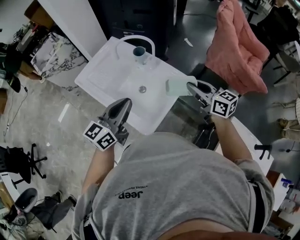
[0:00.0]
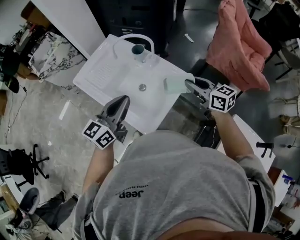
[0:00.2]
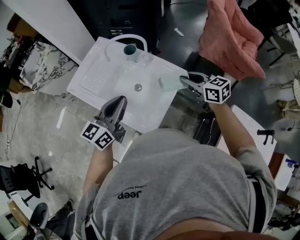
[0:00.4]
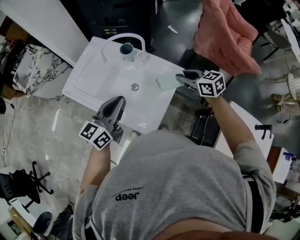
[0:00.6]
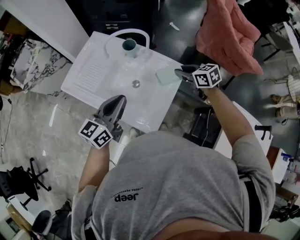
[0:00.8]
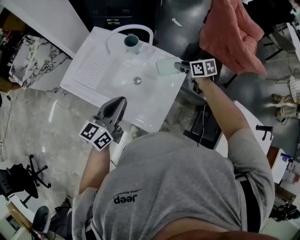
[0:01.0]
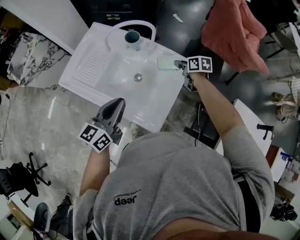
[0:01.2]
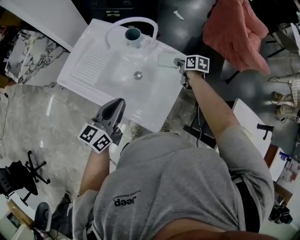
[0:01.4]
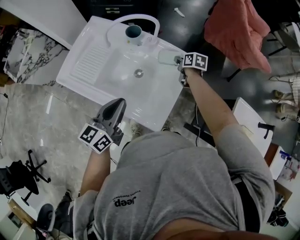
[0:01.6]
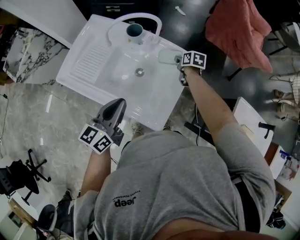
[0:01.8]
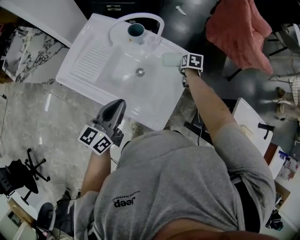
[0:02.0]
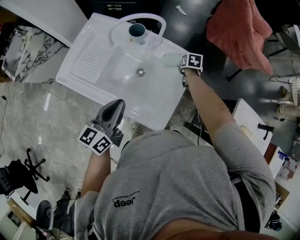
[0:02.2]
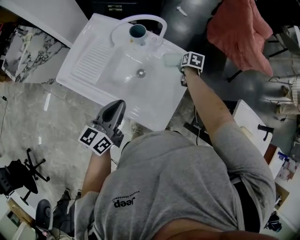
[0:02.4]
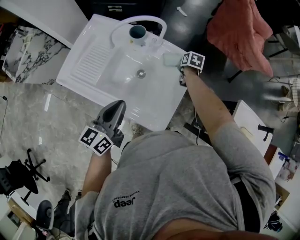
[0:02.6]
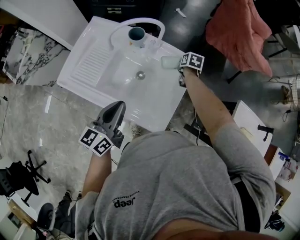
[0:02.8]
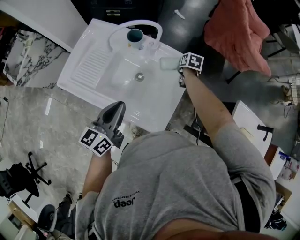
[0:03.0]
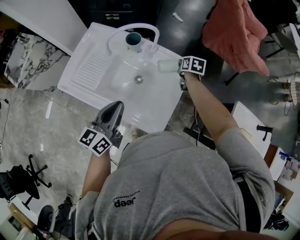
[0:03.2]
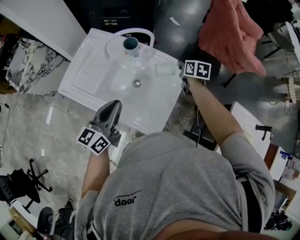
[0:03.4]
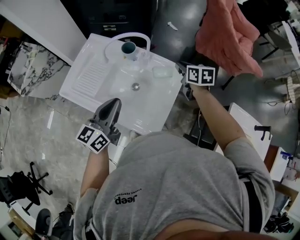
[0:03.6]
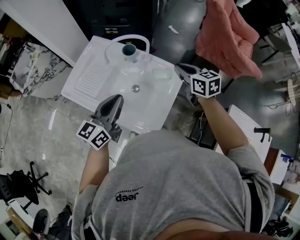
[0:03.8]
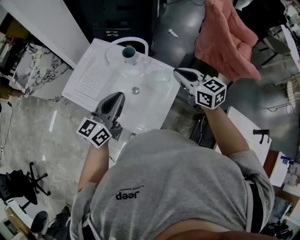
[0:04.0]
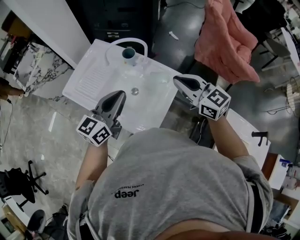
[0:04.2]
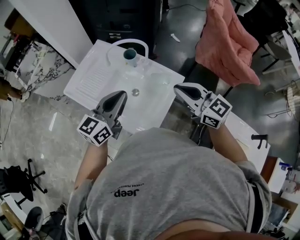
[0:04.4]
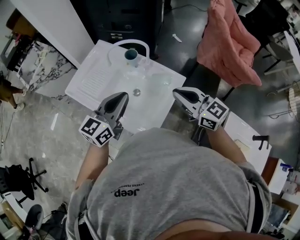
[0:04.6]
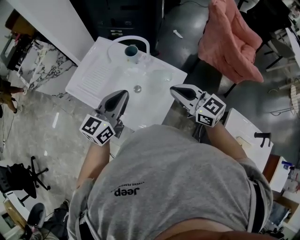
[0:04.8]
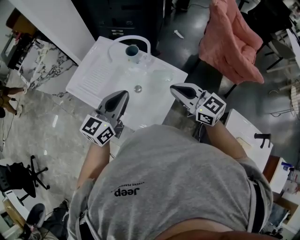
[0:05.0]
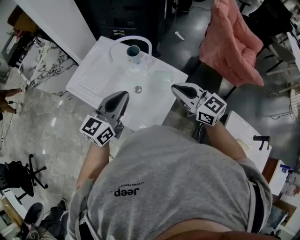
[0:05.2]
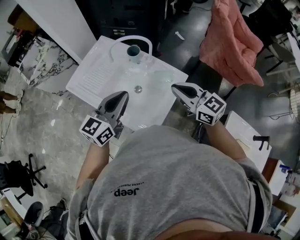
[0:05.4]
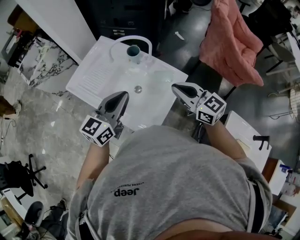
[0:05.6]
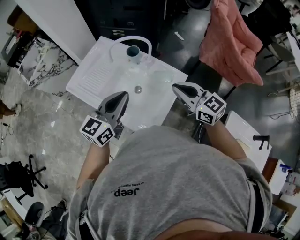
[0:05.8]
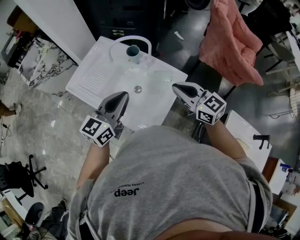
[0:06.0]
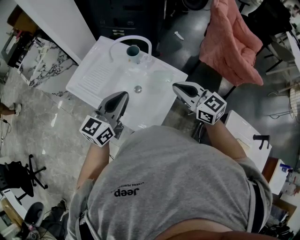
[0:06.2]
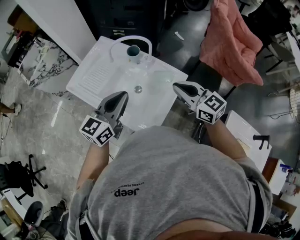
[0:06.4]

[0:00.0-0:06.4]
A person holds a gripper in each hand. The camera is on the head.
0:00.0 to 0:01.6: The left gripper goes some 15 cm downward, to the left and forward. Meanwhile the right gripper heads downward and forward, covering about 30 cm, and points its fingers approximately 40 degrees further downward.
0:03.2 to 0:04.8: The left gripper moves upward and to the right, some 10 cm; the right gripper moves upward and backward, about 30 cm, and tips its fingers upward by approximately 40 degrees.
0:04.8 to 0:06.4: The grippers move only a little.

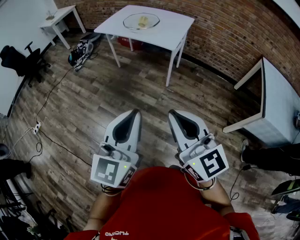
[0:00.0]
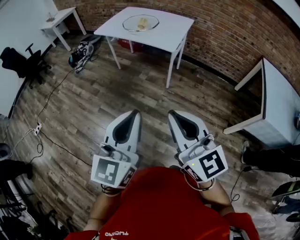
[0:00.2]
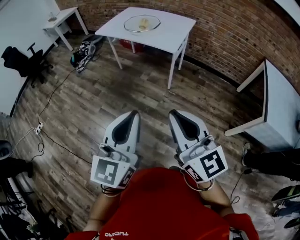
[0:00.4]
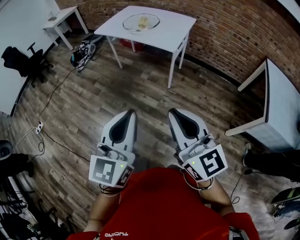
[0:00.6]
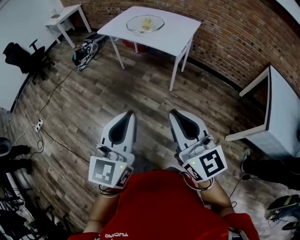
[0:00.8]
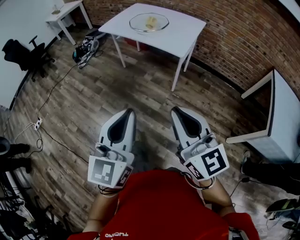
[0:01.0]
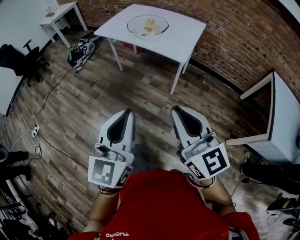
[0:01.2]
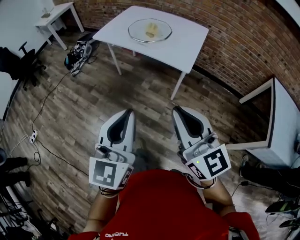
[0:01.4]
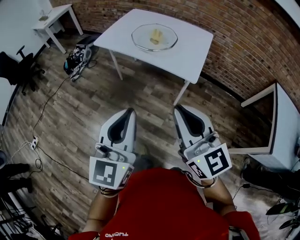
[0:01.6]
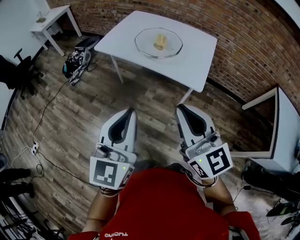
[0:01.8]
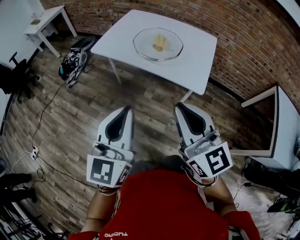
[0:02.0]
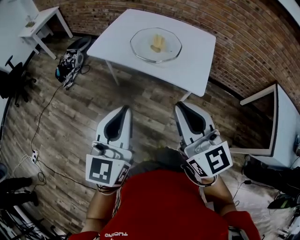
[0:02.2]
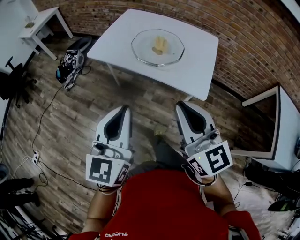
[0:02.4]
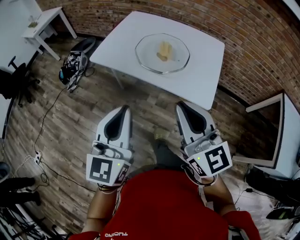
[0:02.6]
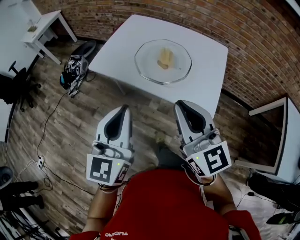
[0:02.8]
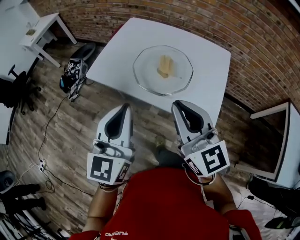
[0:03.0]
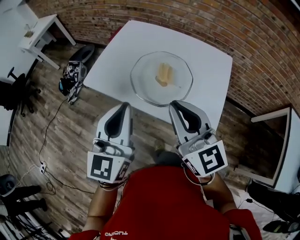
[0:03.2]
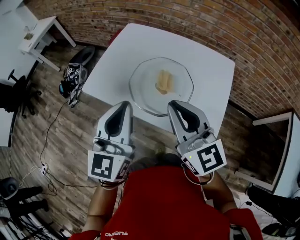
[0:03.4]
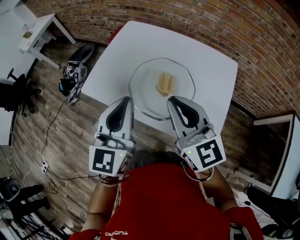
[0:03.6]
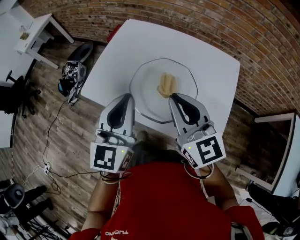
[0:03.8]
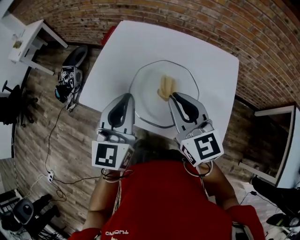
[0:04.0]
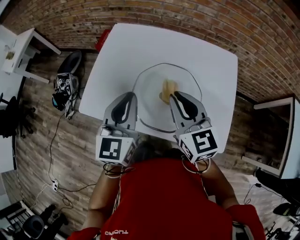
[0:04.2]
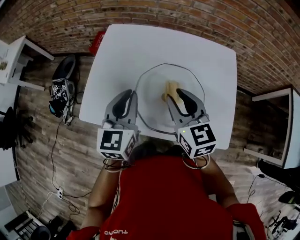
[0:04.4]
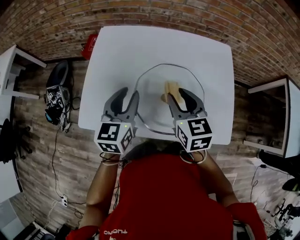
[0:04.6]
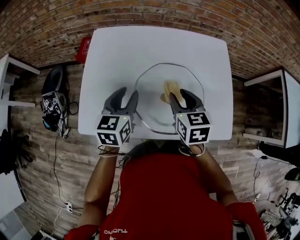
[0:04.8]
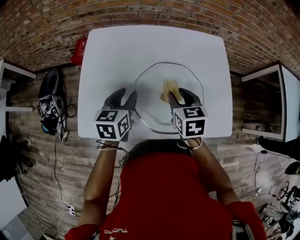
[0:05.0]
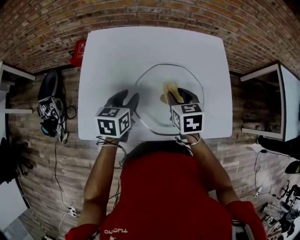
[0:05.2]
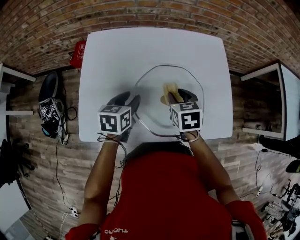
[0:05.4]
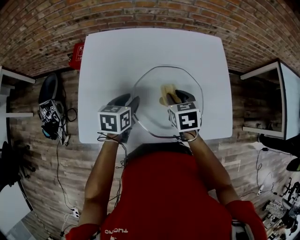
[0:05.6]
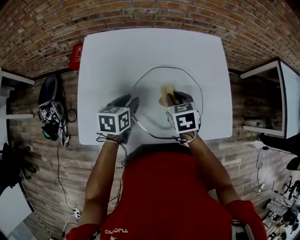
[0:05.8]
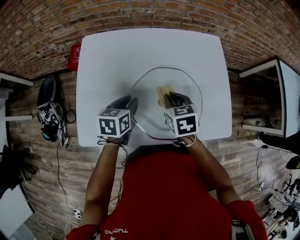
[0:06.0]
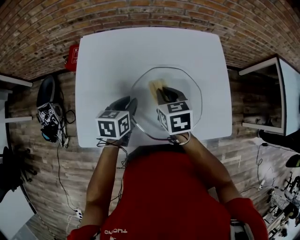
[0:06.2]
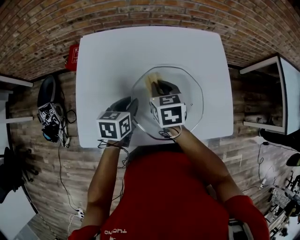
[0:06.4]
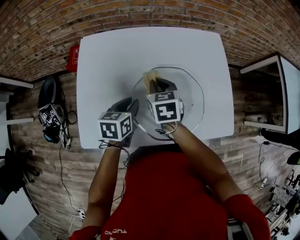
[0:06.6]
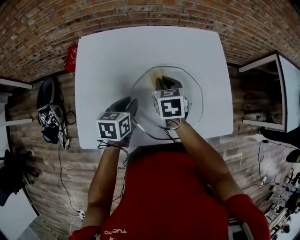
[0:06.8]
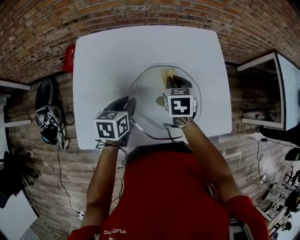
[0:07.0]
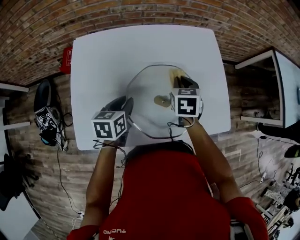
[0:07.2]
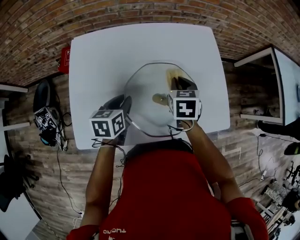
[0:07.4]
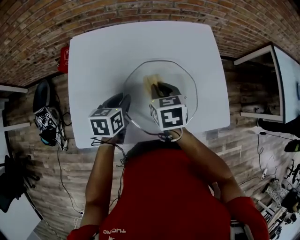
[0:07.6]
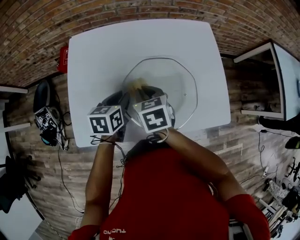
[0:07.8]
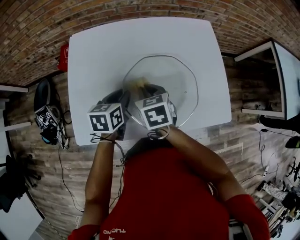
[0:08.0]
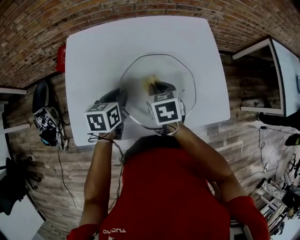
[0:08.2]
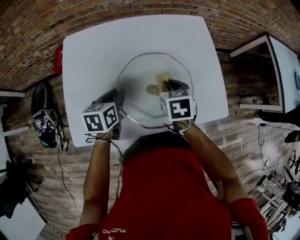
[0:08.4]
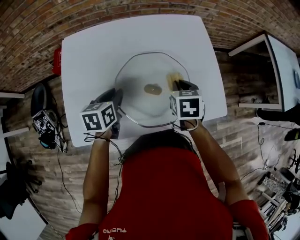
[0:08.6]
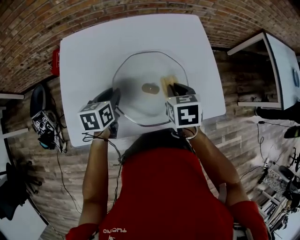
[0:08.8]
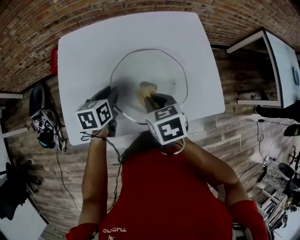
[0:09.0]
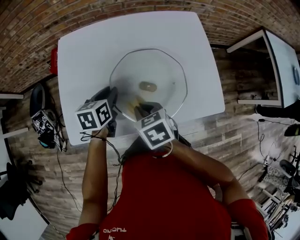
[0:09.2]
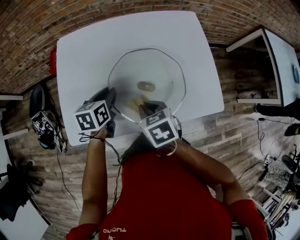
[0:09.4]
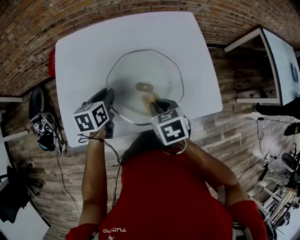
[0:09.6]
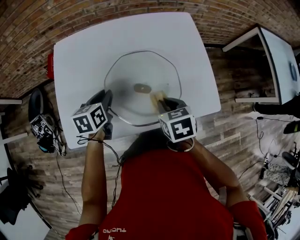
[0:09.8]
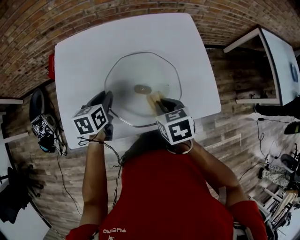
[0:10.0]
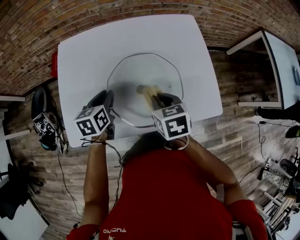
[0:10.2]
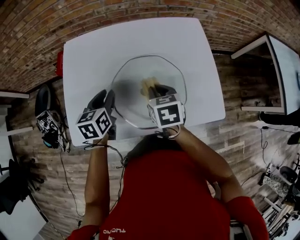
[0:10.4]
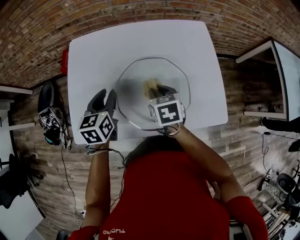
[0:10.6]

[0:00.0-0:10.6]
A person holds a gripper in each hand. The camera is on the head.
0:00.0 to 0:01.6: The grippers both shift forward by approximately 35 cm.
0:01.6 to 0:03.0: The grippers both shift forward by some 35 cm.
0:03.0 to 0:04.6: Both grippers travel together forward and downward, approximately 35 cm. The right gripper rotates about 40 degrees, and opens. Meanwhile the left gripper swivels about 30 degrees, and opens its fingers.
0:04.6 to 0:06.0: The grippers both shift downward by some 10 cm. The left gripper turns by roughly 30 degrees. Meanwhile the right gripper turns by about 20 degrees, and closes up.
0:06.0 to 0:07.6: The right gripper moves left and right over some 10 cm, changing direction 2 times.
0:07.6 to 0:09.0: The right gripper swings left and right, some 20 cm each way, with 2 reversals.
0:09.0 to 0:10.6: The left gripper shifts approximately 5 cm upward. Meanwhile the right gripper goes left and right, about 10 cm each way, reversing 2 times.

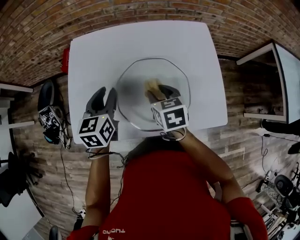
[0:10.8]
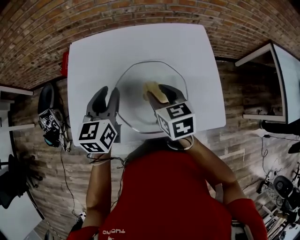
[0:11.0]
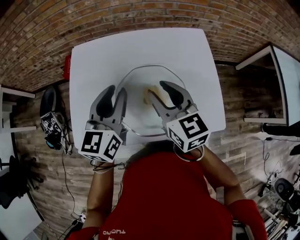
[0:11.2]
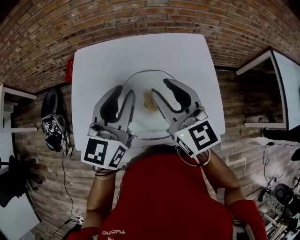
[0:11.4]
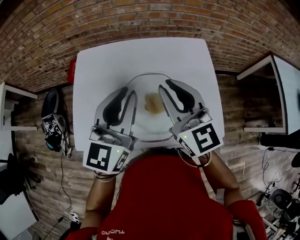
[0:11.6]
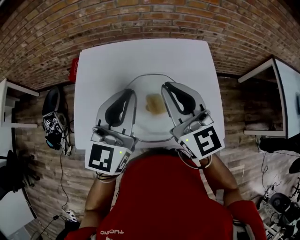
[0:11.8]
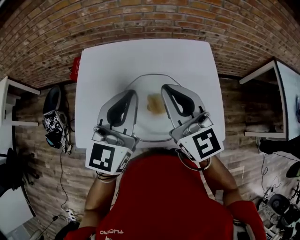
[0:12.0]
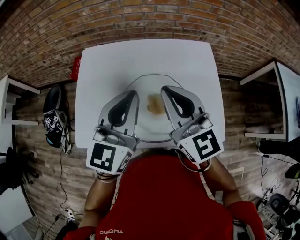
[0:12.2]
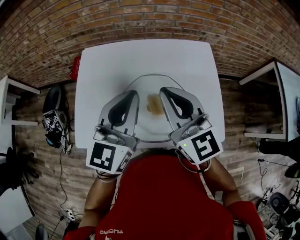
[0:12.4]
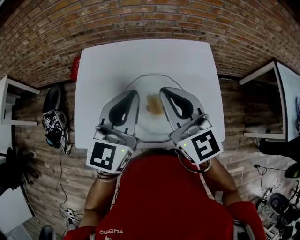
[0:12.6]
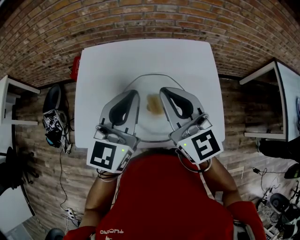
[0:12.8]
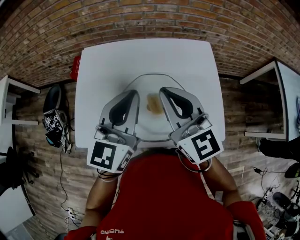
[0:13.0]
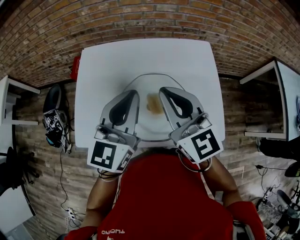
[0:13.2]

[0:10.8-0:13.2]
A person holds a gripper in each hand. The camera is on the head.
0:10.8 to 0:12.0: The right gripper is displaced upward by approximately 25 cm, tilts its fingers about 50 degrees upward, and closes up, while the left gripper is displaced upward and to the right by some 20 cm, swivels roughly 30 degrees, and closes.
0:12.0 to 0:13.2: Both grippers stay put.

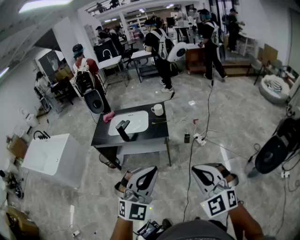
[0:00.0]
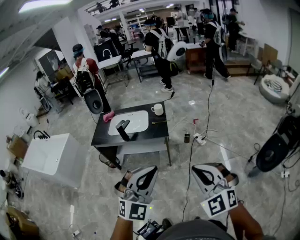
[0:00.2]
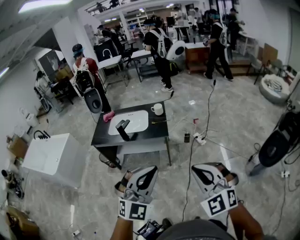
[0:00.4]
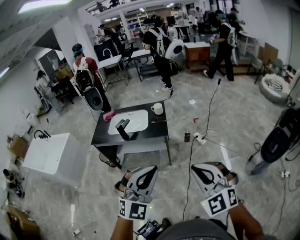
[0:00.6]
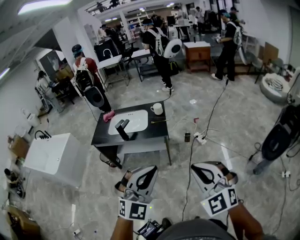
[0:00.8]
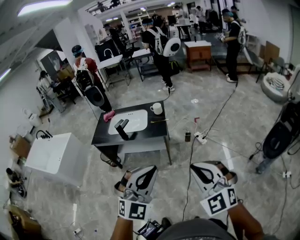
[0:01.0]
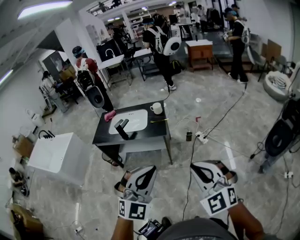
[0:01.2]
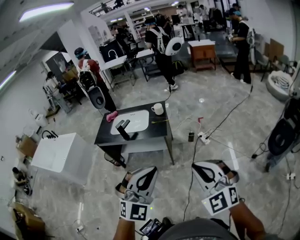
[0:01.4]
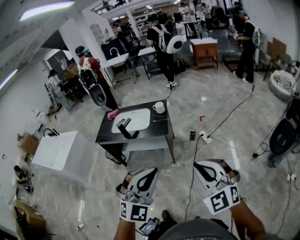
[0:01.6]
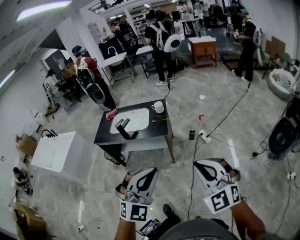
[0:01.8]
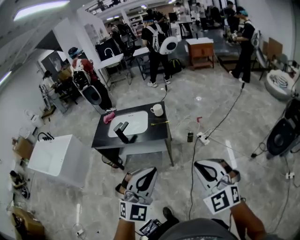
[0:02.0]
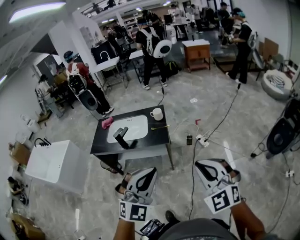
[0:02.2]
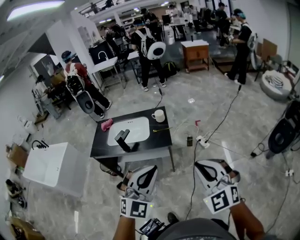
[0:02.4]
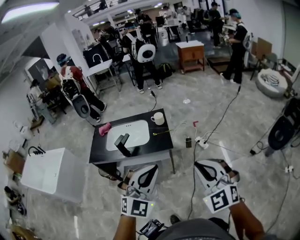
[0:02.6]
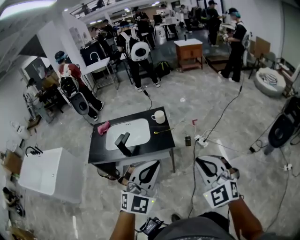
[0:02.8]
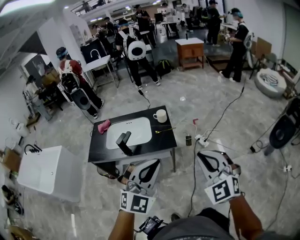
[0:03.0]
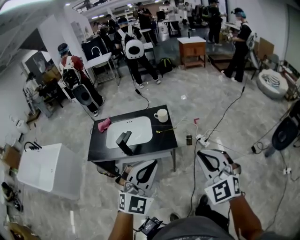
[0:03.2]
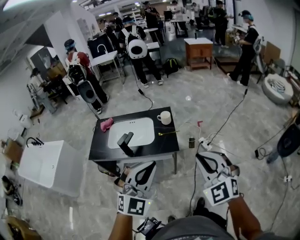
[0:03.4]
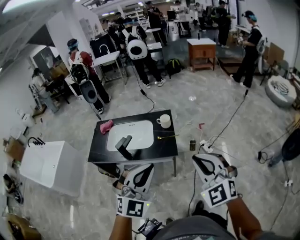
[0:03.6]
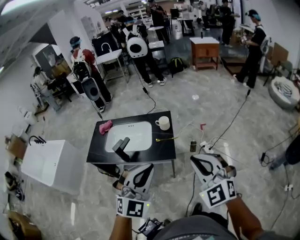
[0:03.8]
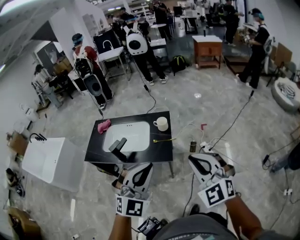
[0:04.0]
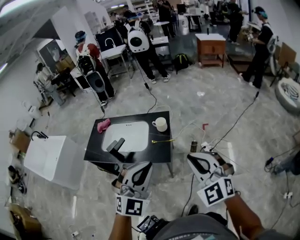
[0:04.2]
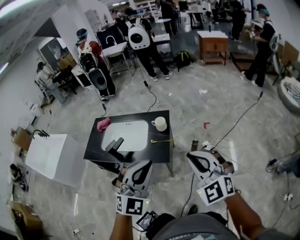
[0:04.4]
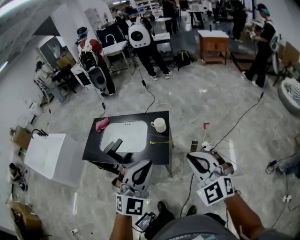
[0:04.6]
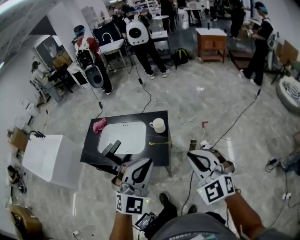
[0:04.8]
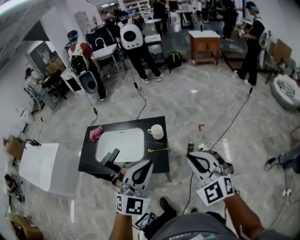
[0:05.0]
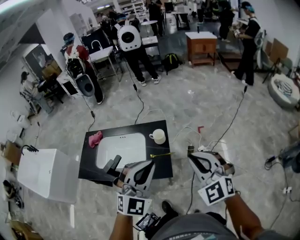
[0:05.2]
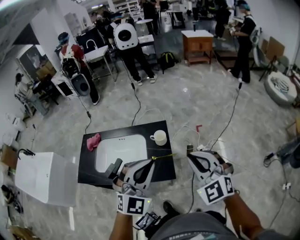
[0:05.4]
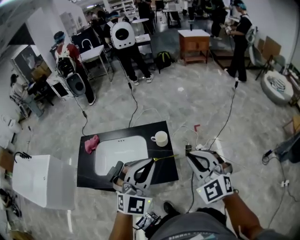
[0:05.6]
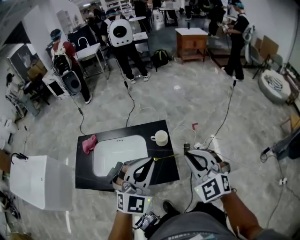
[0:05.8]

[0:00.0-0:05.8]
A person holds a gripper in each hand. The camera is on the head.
0:00.0 to 0:01.4: The grippers both shift to the right by approximately 5 cm.
0:01.4 to 0:02.8: Both grippers travel together forward and to the left, roughly 20 cm.
0:02.8 to 0:04.4: The right gripper shifts about 20 cm forward; the left gripper goes about 20 cm forward and to the right.
0:04.4 to 0:05.8: The two grippers go roughly 20 cm forward and to the left.
